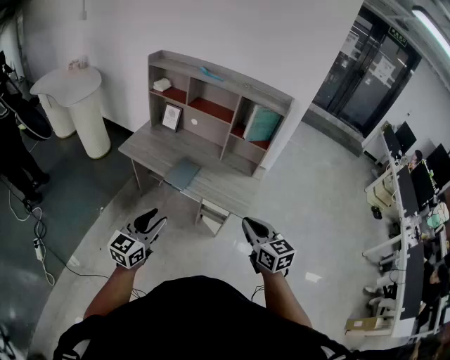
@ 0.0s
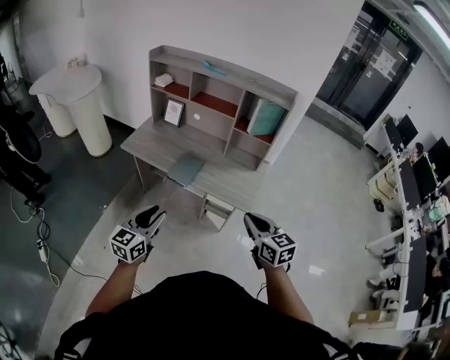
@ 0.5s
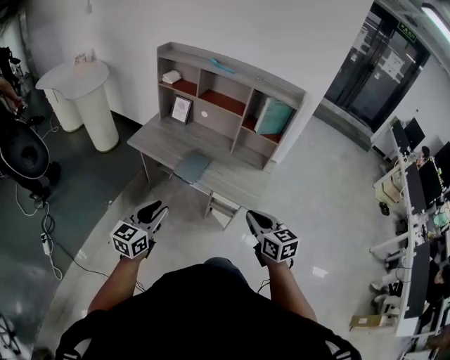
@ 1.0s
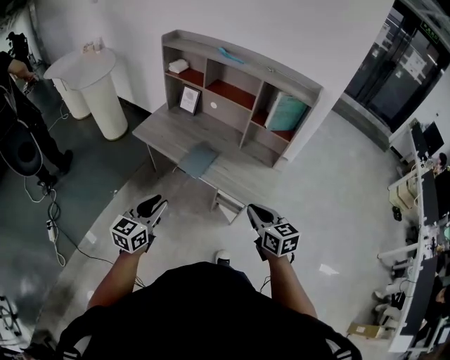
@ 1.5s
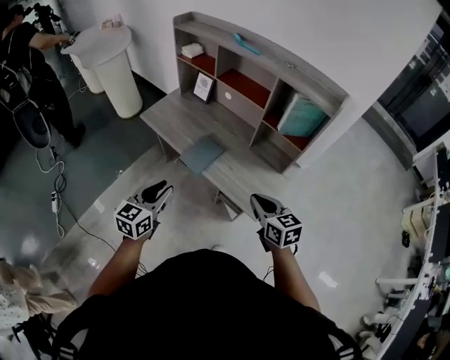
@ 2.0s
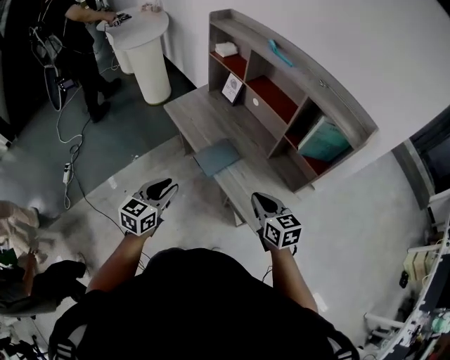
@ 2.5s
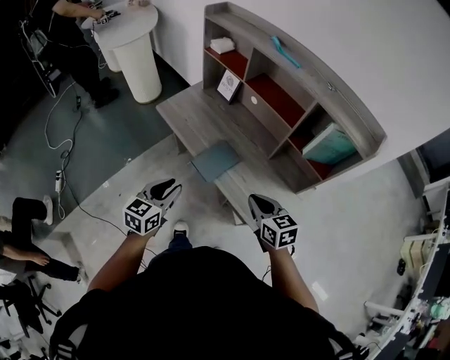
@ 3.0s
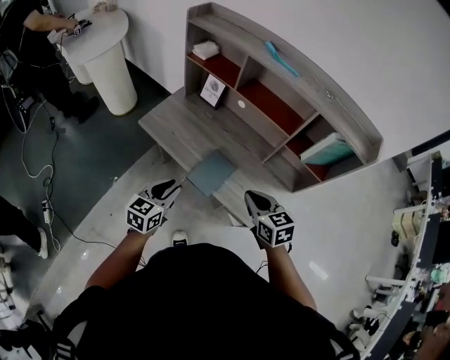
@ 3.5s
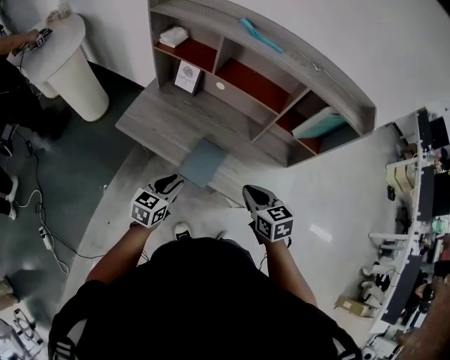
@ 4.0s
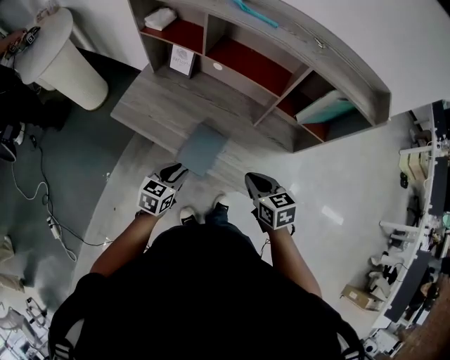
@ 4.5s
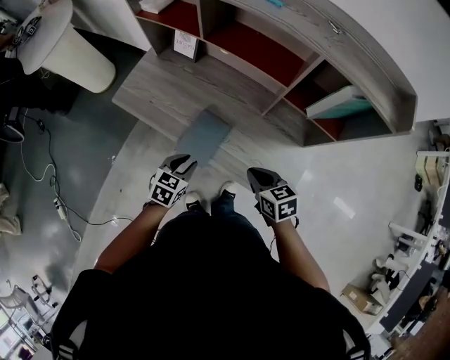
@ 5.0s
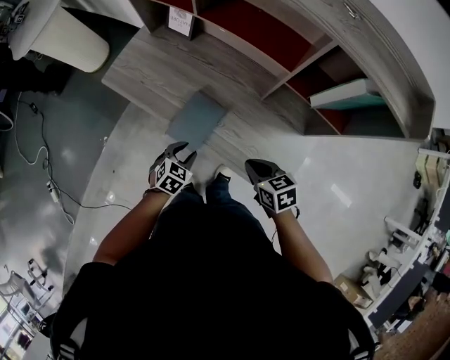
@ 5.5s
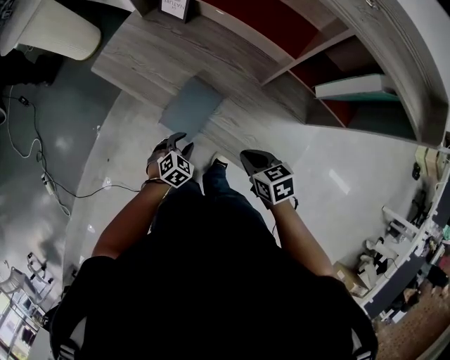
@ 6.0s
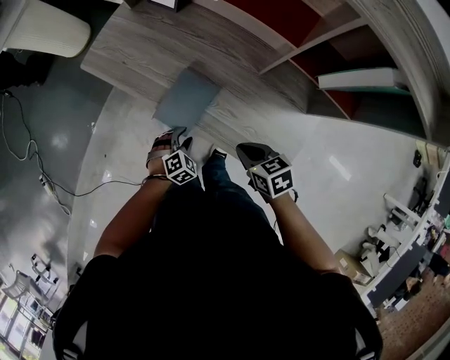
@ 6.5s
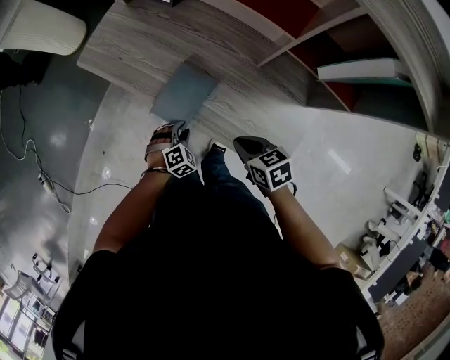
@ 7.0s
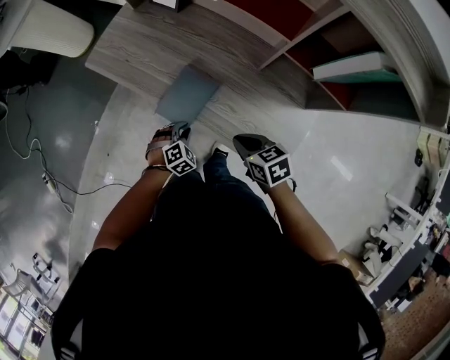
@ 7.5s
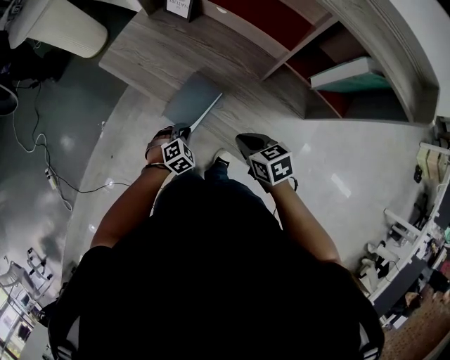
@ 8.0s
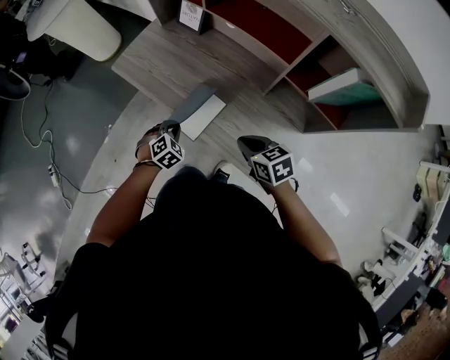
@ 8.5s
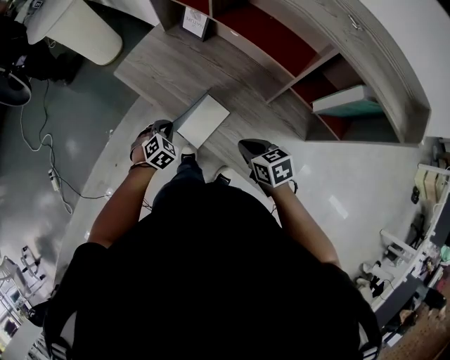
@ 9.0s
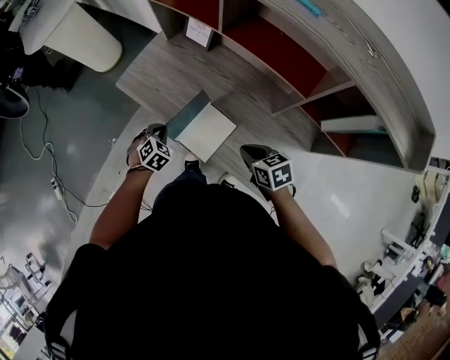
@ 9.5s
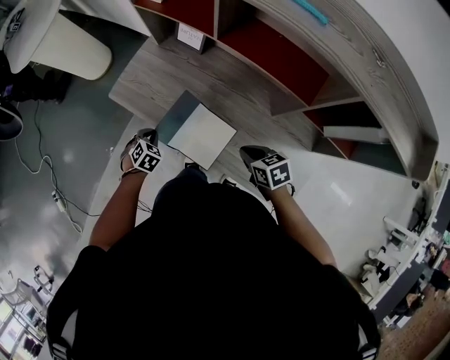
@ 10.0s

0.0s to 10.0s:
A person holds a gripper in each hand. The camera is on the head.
0.0s to 2.0s: The left gripper goes roughly 15 cm forward, and swivels some 20 degrees. The right gripper shifts about 20 cm forward and downward.
2.0s to 4.0s: The right gripper ends up approximately 20 cm from where it was. The left gripper shifts by about 25 cm, and turns by some 20 degrees.
4.0s to 6.0s: The grippers both shift downward and to the right by about 25 cm. The left gripper tips its fingers downward by roughly 30 degrees, while the right gripper rotates roughly 20 degrees.
6.0s to 8.0s: The left gripper closes.
8.0s to 10.0s: The left gripper is displaced forward and to the left by approximately 25 cm; the right gripper goes some 10 cm forward.

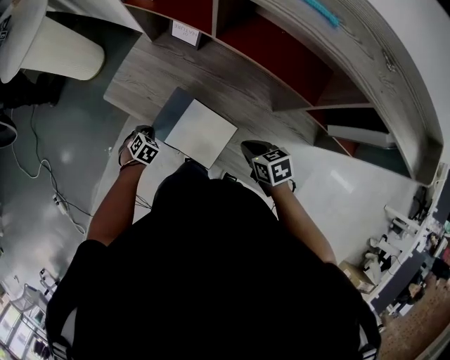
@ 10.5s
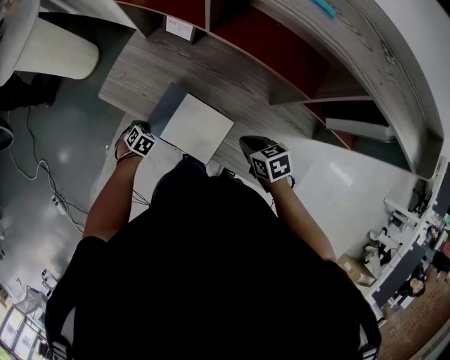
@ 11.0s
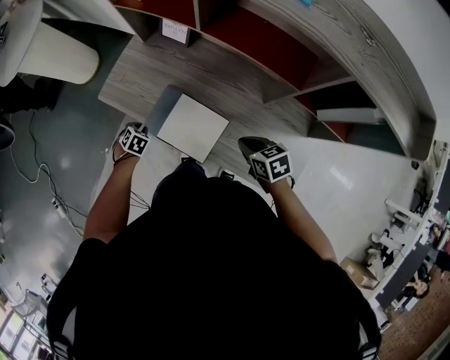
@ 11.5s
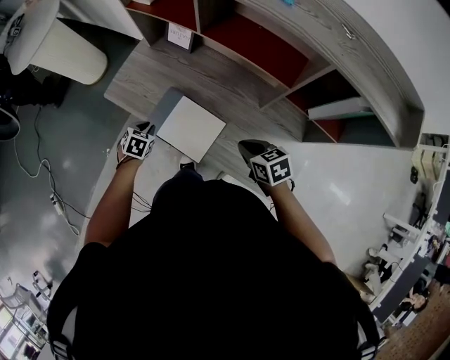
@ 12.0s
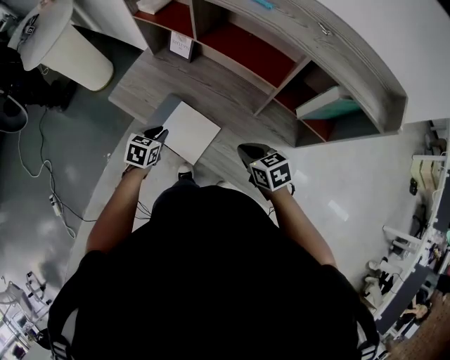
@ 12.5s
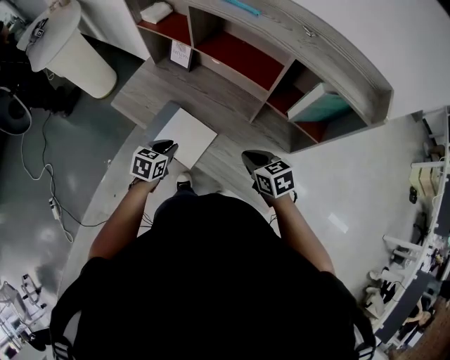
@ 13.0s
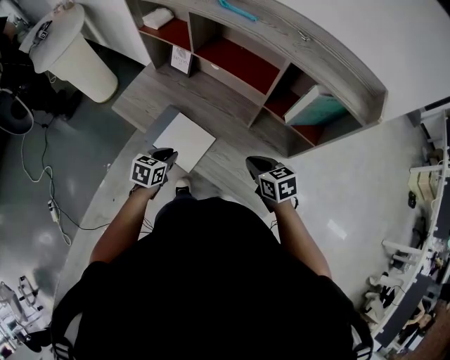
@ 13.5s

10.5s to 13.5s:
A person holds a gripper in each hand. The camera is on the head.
10.5s to 12.0s: The right gripper moves about 5 cm. Meanwhile the left gripper heads upward, covering some 5 cm.
12.0s to 13.5s: The left gripper moves to the right, backward and upward, about 20 cm, and swivels about 30 degrees. The right gripper shifts some 10 cm to the right, backward and upward.

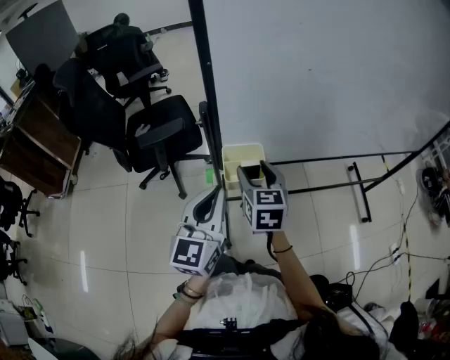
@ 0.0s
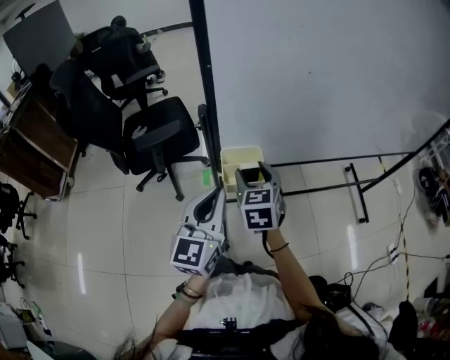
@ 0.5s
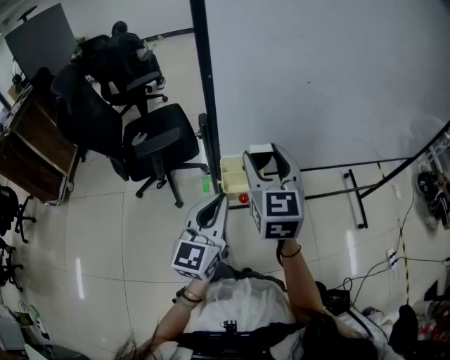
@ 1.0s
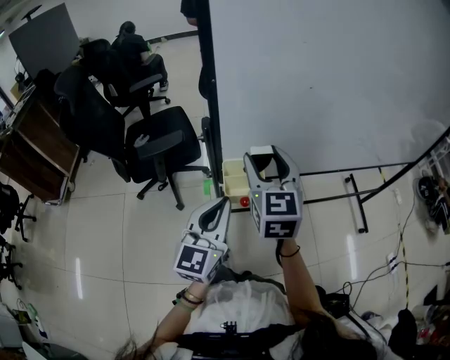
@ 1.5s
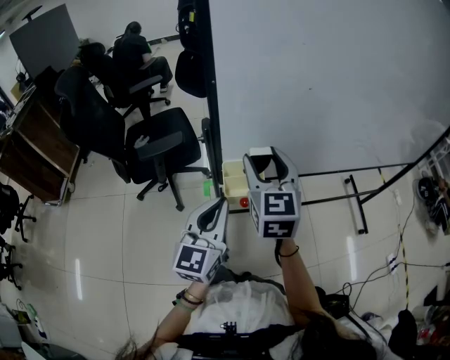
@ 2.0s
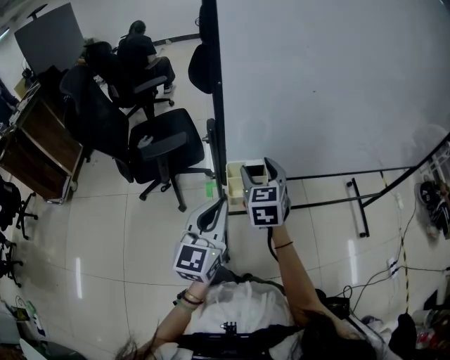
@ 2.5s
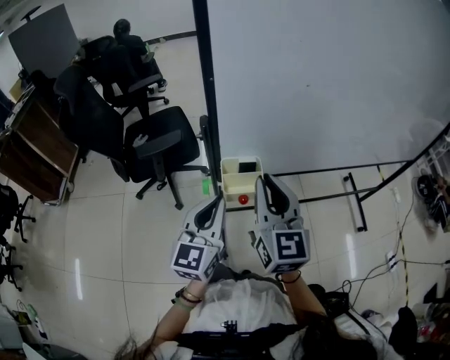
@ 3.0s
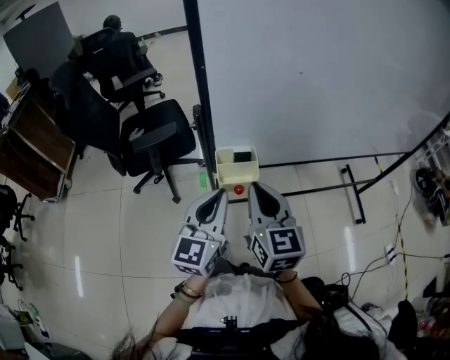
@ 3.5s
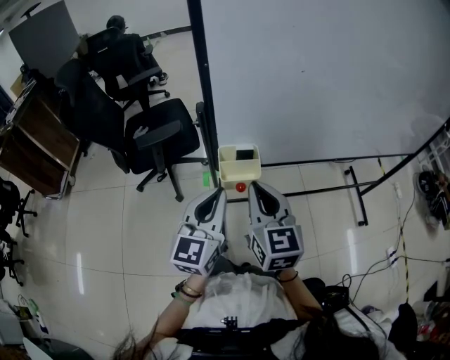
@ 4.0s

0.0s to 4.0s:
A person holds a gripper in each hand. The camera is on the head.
0.0s to 2.0s: The right gripper goes some 10 cm upward.
2.0s to 4.0s: The right gripper moves backward, some 10 cm, and closes up.

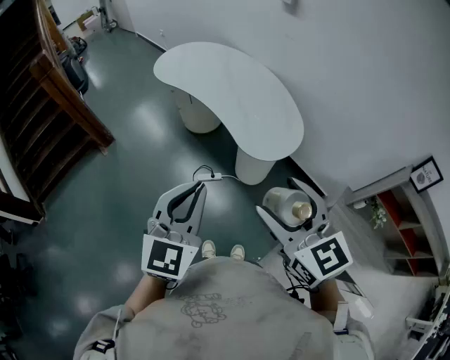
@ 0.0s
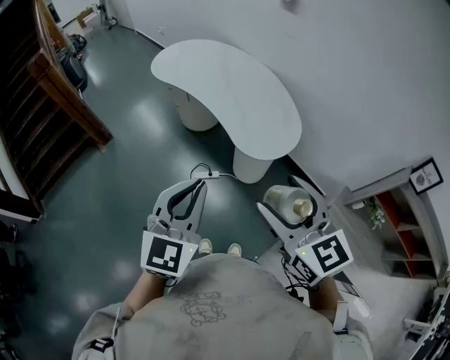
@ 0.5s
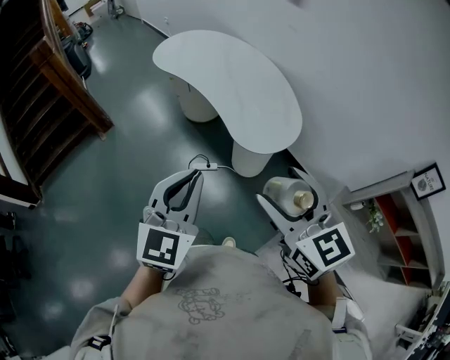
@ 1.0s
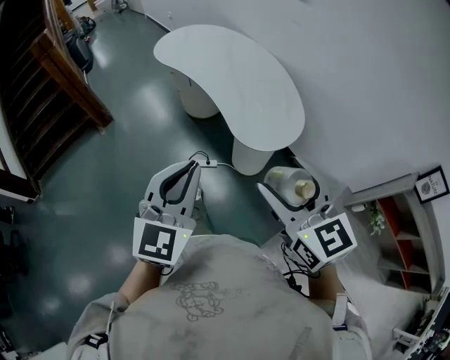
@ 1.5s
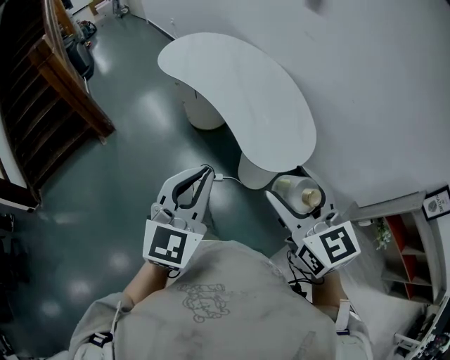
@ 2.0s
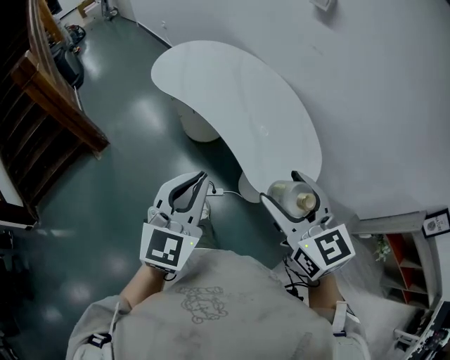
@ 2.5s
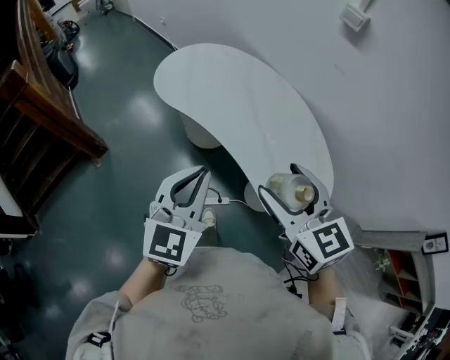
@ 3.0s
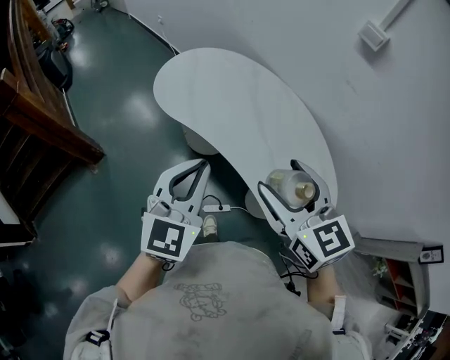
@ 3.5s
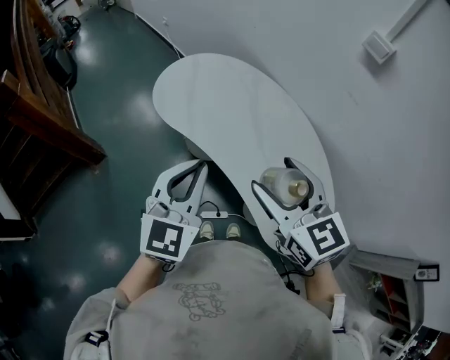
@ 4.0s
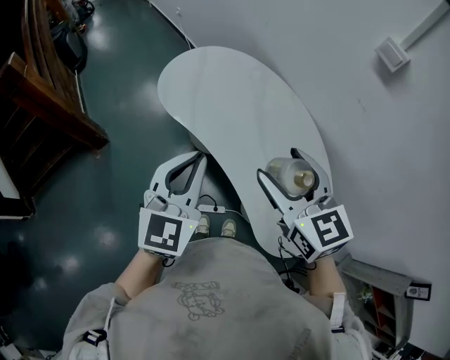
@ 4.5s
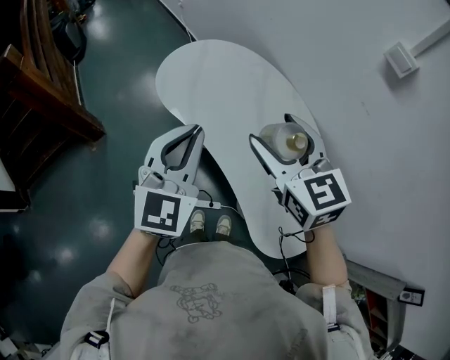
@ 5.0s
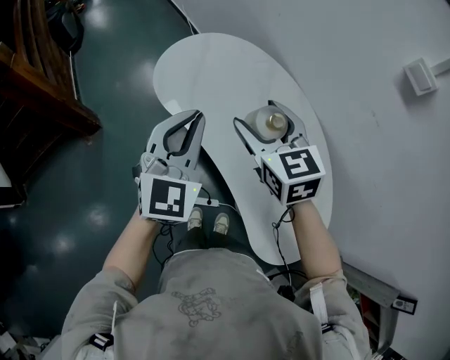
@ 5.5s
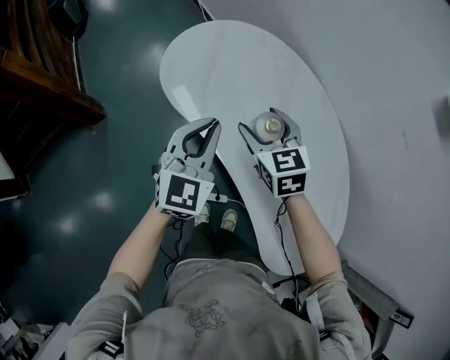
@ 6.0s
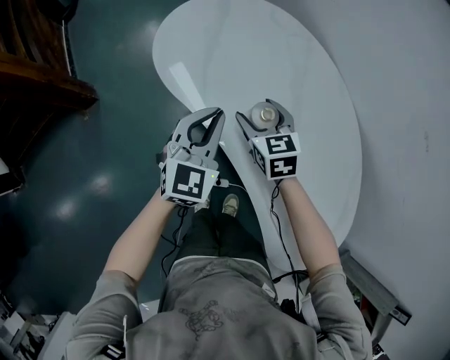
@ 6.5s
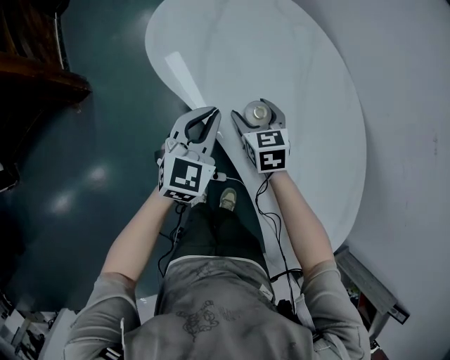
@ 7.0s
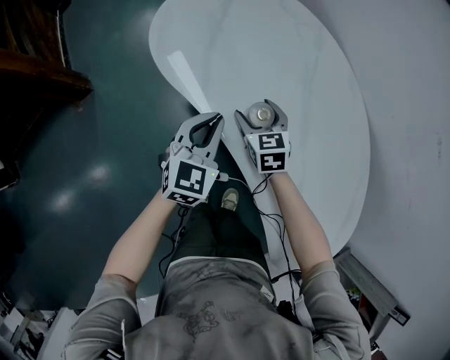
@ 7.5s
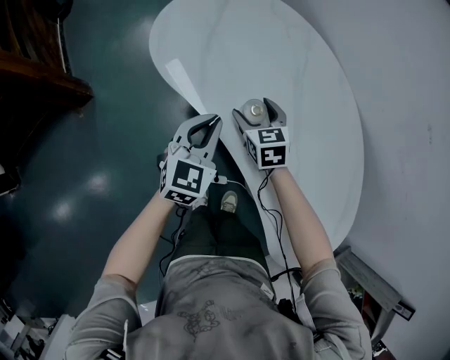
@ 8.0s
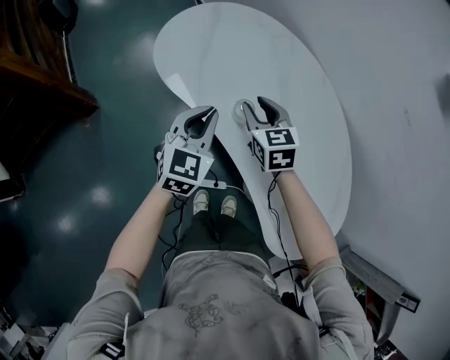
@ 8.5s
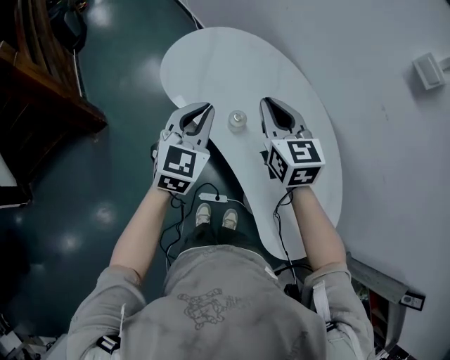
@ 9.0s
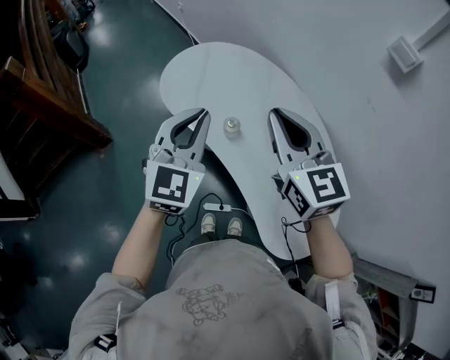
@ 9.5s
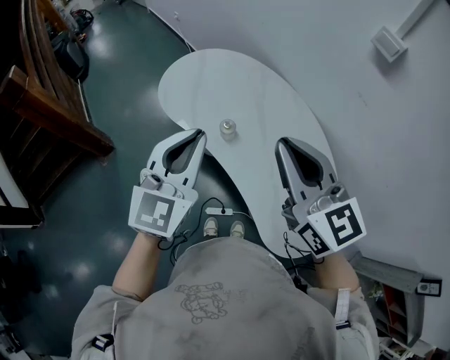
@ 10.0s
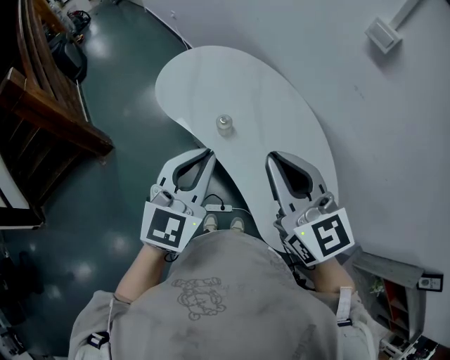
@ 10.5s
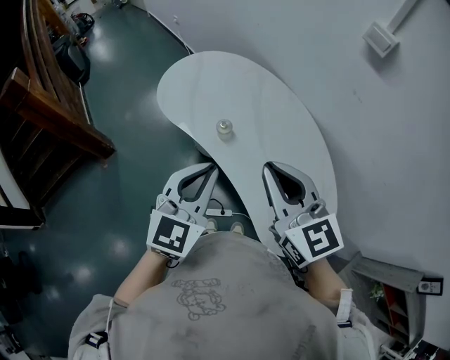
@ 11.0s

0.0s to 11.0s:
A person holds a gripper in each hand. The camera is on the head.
0.0s to 2.0s: The left gripper shifts approximately 10 cm forward. The right gripper goes approximately 15 cm forward and downward.
2.0s to 3.5s: The two grippers travel together, forward and to the left, some 40 cm.
3.5s to 5.5s: Both grippers move forward, roughly 20 cm.
5.5s to 7.5s: Both grippers move downward, about 35 cm. The left gripper rotates about 20 degrees.
7.5s to 9.0s: Both grippers move upward, roughly 25 cm. The right gripper turns by approximately 20 degrees, and closes up.
9.0s to 11.0s: The grippers both shift backward and upward by about 20 cm.
